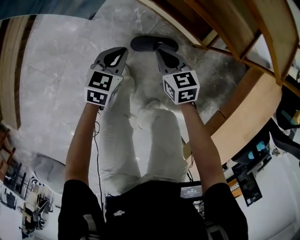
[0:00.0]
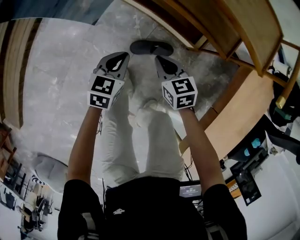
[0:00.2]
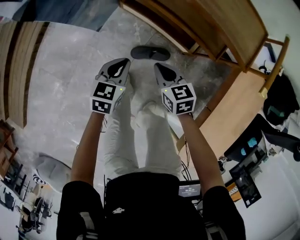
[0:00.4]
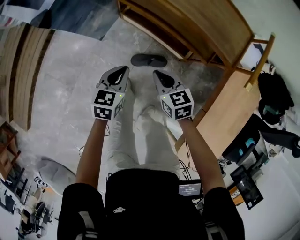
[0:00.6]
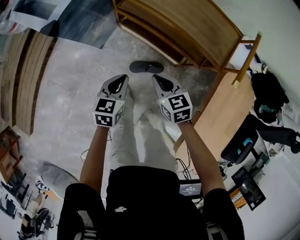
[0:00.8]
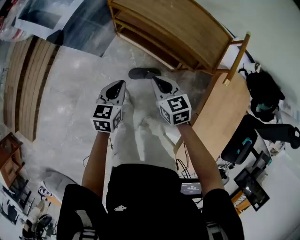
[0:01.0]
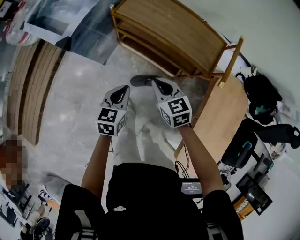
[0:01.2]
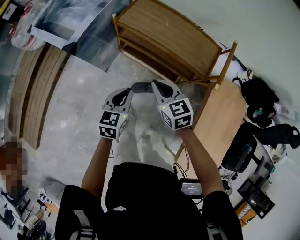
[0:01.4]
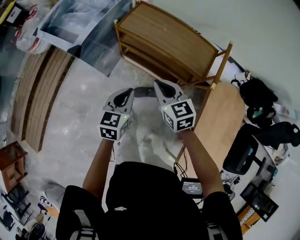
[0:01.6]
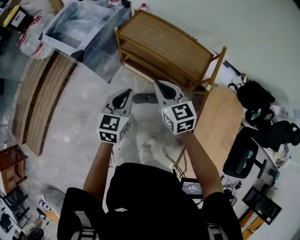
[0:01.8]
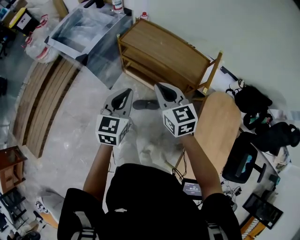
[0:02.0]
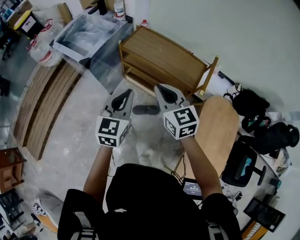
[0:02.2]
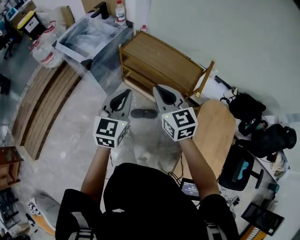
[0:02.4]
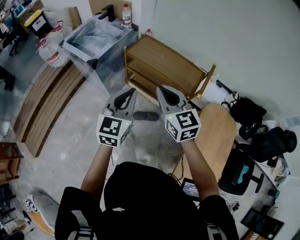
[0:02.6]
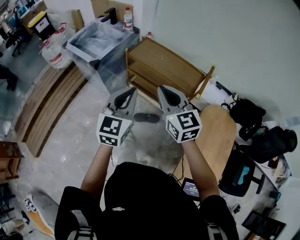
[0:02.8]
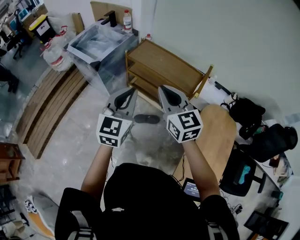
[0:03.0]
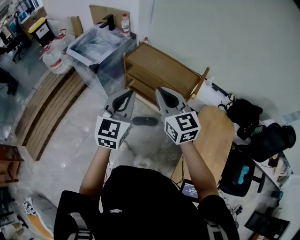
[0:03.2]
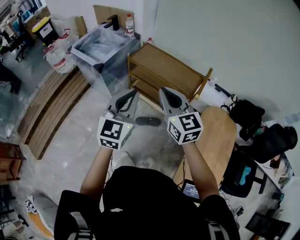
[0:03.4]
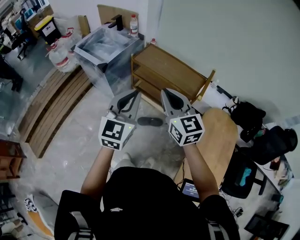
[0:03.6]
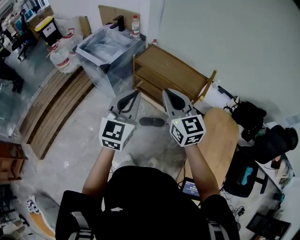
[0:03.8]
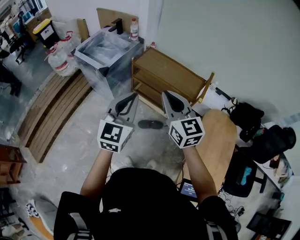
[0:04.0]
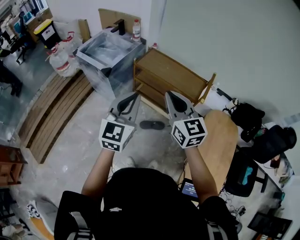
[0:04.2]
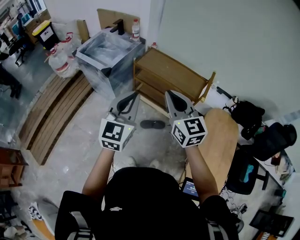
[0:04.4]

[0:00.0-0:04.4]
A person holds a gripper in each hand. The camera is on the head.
0.0 to 1.4 s: Both grippers move upward, approximately 40 cm.
1.4 to 3.0 s: The two grippers go roughly 35 cm upward and backward. The left gripper turns by about 30 degrees; the right gripper swivels approximately 30 degrees.
3.0 to 4.4 s: The two grippers go approximately 5 cm to the left.

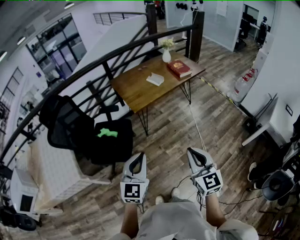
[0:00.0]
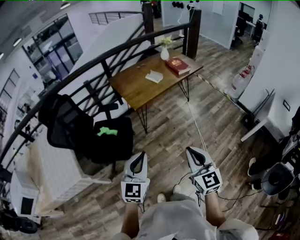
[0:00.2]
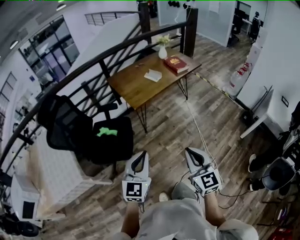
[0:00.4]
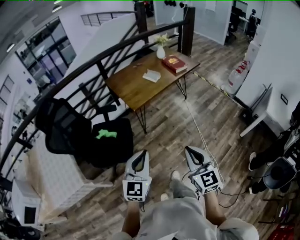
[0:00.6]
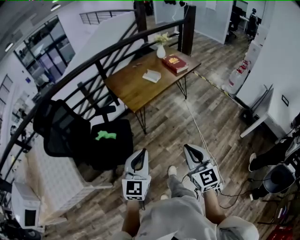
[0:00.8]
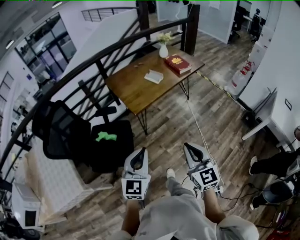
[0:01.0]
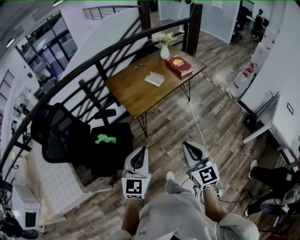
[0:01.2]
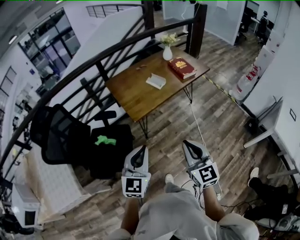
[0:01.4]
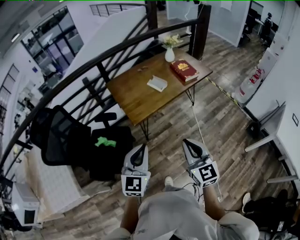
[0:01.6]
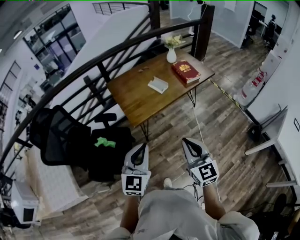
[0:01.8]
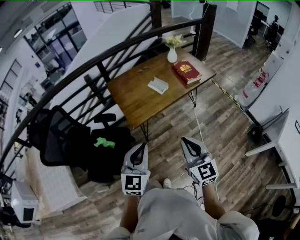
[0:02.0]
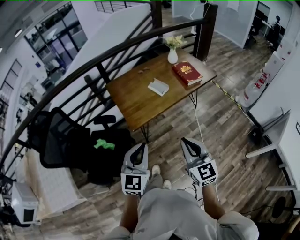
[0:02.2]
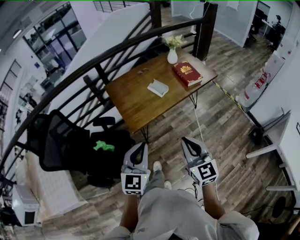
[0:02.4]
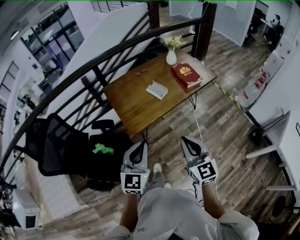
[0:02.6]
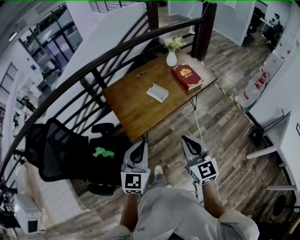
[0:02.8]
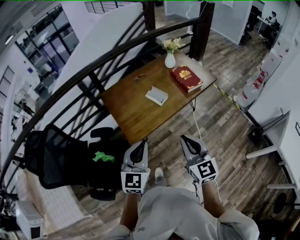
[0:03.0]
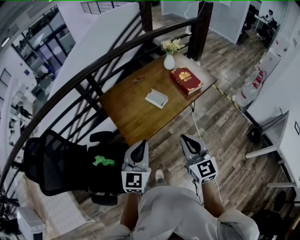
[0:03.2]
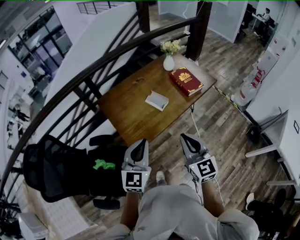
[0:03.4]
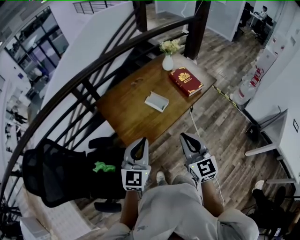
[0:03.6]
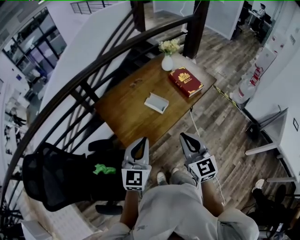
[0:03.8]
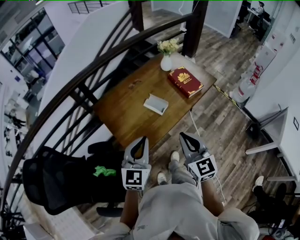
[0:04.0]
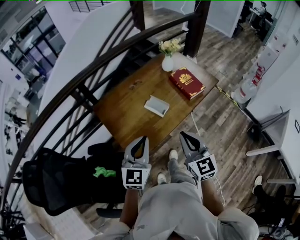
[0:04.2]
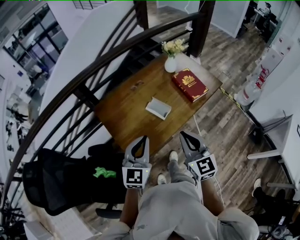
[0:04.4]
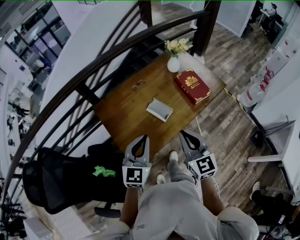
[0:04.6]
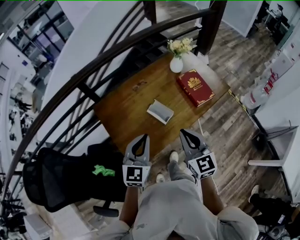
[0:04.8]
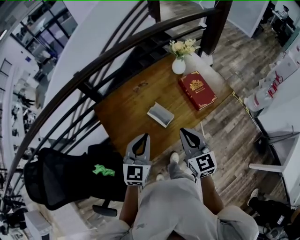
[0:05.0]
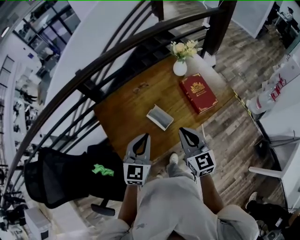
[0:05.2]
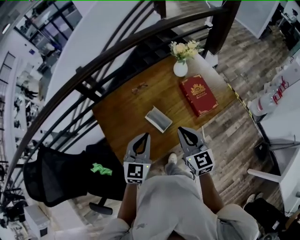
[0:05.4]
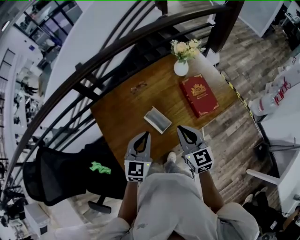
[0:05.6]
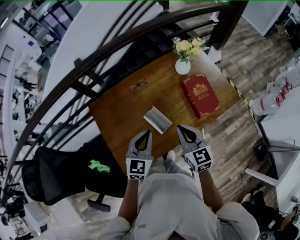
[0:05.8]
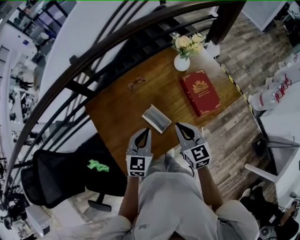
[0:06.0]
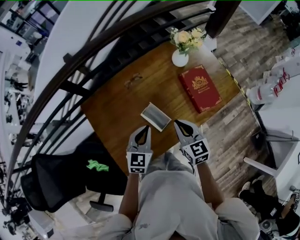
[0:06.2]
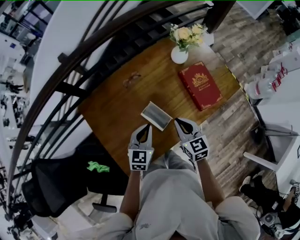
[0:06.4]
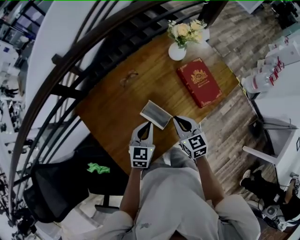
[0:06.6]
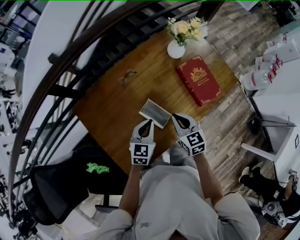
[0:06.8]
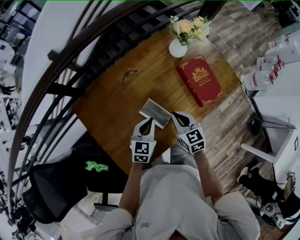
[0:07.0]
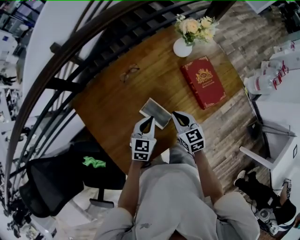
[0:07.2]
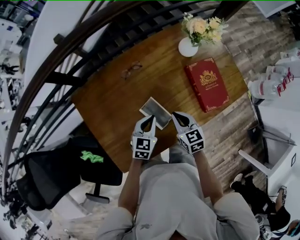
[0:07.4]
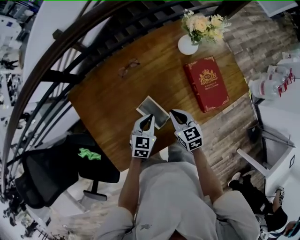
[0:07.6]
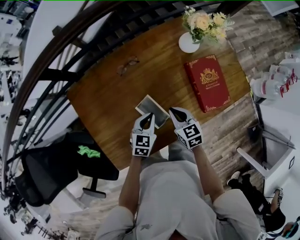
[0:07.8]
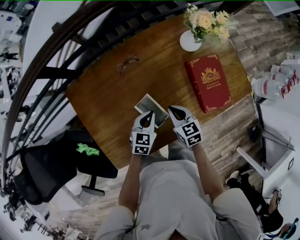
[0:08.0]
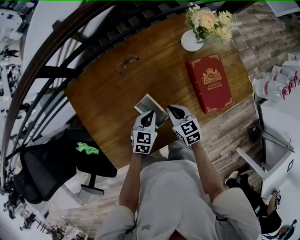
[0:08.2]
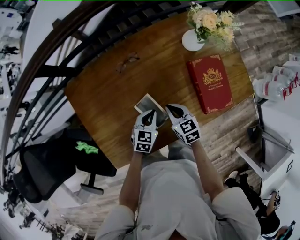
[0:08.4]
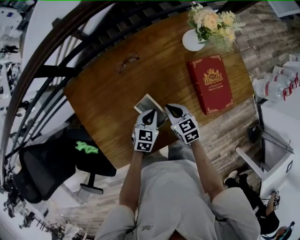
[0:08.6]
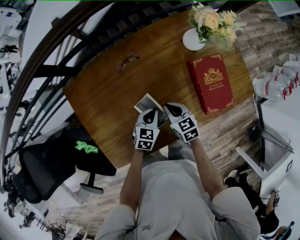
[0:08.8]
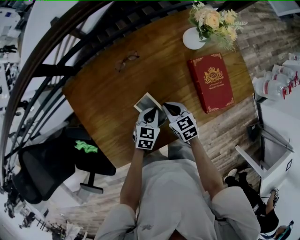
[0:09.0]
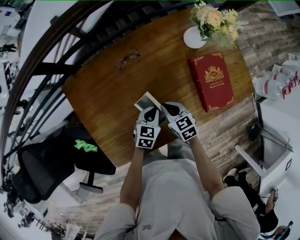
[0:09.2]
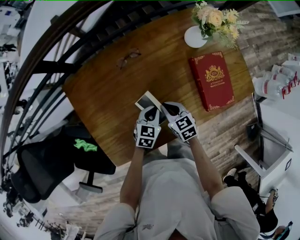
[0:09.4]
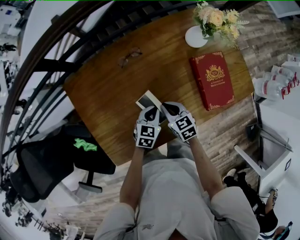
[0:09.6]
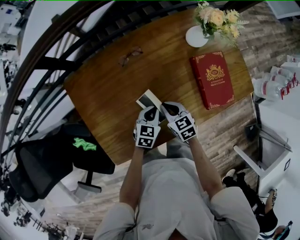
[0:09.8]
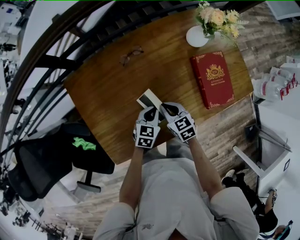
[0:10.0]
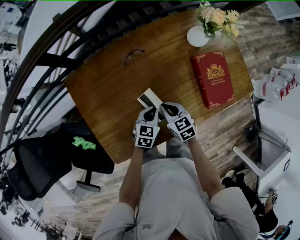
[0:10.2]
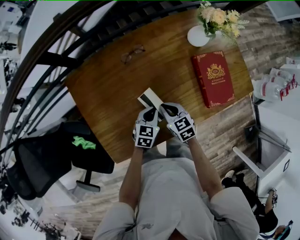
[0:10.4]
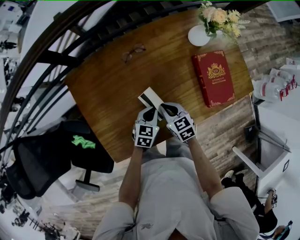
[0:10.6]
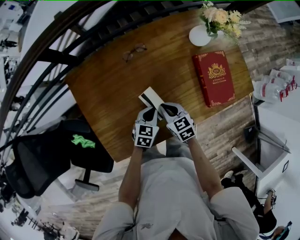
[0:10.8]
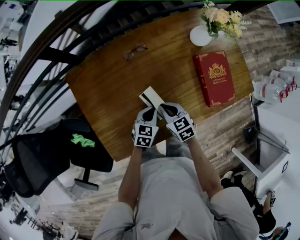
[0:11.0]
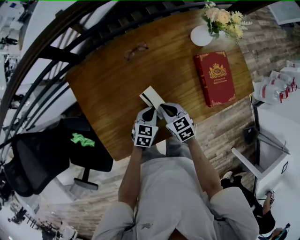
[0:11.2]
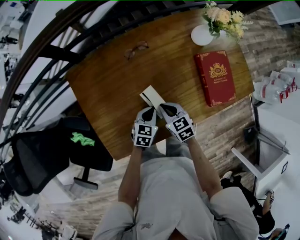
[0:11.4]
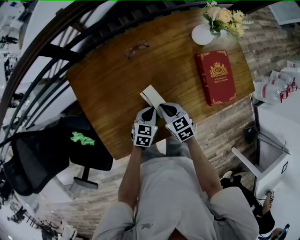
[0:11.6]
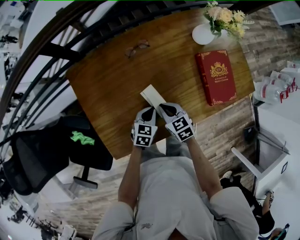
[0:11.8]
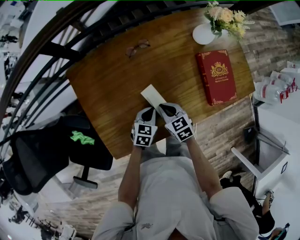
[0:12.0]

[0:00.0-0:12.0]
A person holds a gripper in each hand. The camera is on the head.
0.0 to 1.6 s: The grippers both shift forward by about 20 cm.
1.6 to 3.0 s: Both grippers move forward, approximately 20 cm.
3.0 to 4.4 s: Both grippers move forward, approximately 20 cm.
4.4 to 6.0 s: Both grippers travel together forward and downward, about 25 cm.
6.0 to 7.6 s: The right gripper shifts approximately 15 cm downward and forward. The left gripper moves downward, roughly 15 cm.
7.6 to 9.0 s: The two grippers go some 5 cm downward.
9.0 to 10.4 s: The grippers stay close to where they were, moving slightly.
10.4 to 12.0 s: The grippers stay close to where they were, moving slightly.

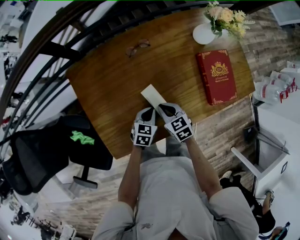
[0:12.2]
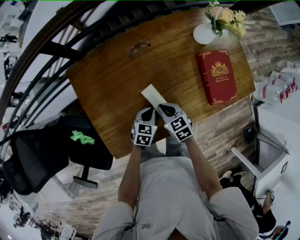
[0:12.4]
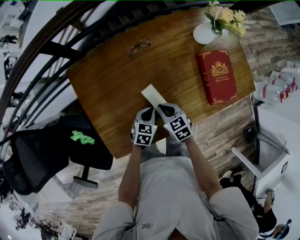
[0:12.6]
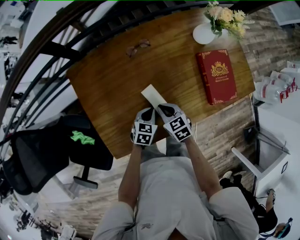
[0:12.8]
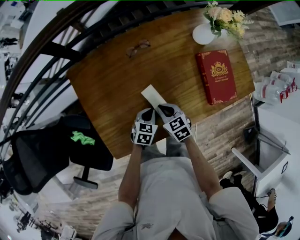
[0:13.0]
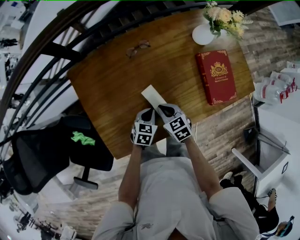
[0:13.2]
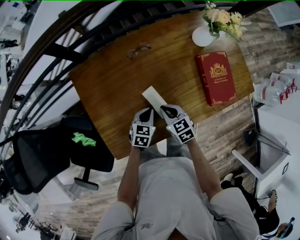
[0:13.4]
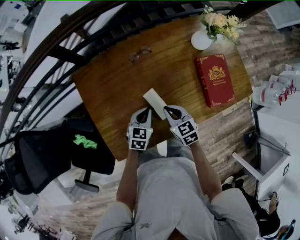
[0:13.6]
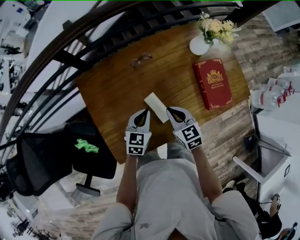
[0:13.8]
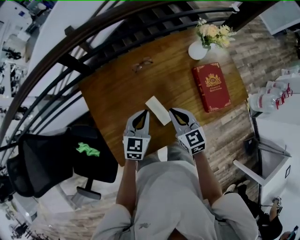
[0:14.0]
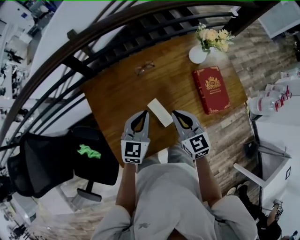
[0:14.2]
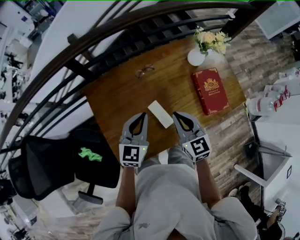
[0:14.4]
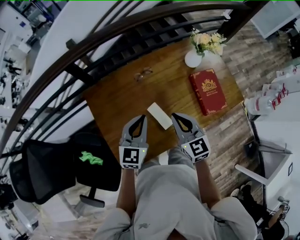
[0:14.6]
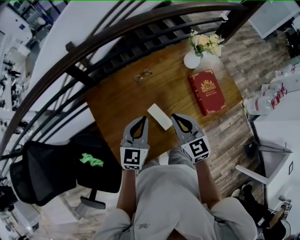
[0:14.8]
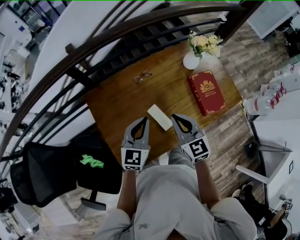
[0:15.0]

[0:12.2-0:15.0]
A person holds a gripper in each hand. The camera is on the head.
12.2 to 13.6 s: The left gripper is displaced upward by some 5 cm.
13.6 to 15.0 s: The two grippers go some 20 cm upward. The left gripper rotates approximately 30 degrees. Meanwhile the right gripper swivels about 30 degrees.

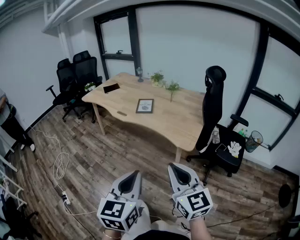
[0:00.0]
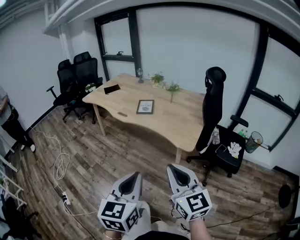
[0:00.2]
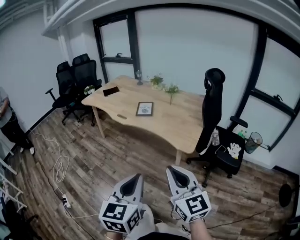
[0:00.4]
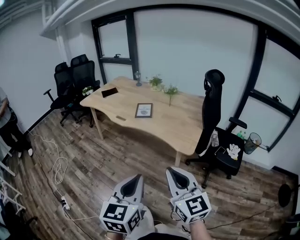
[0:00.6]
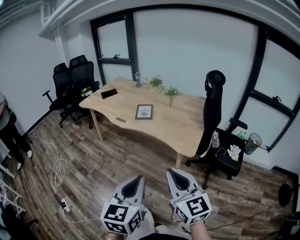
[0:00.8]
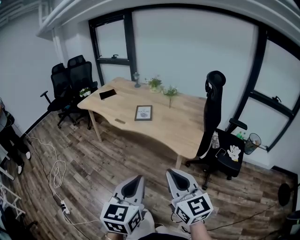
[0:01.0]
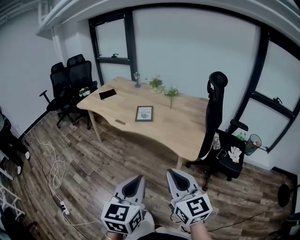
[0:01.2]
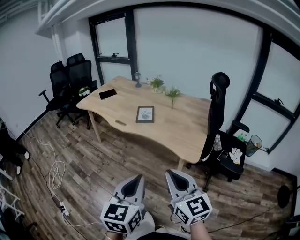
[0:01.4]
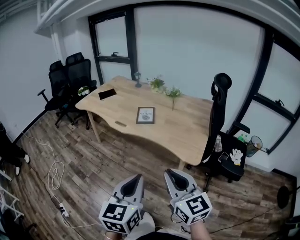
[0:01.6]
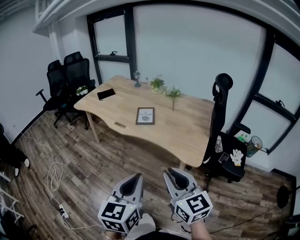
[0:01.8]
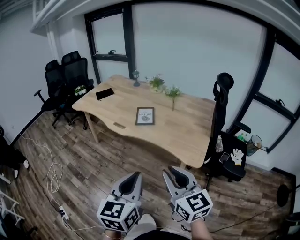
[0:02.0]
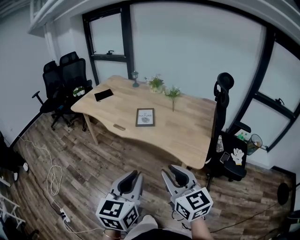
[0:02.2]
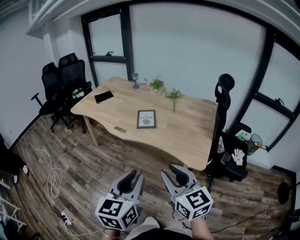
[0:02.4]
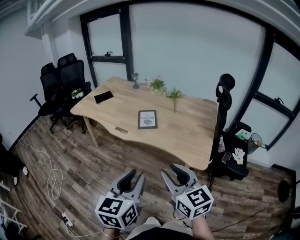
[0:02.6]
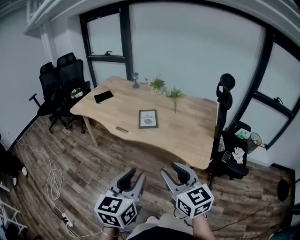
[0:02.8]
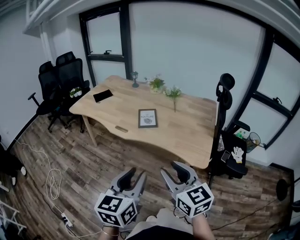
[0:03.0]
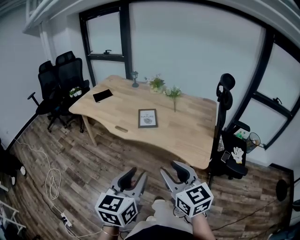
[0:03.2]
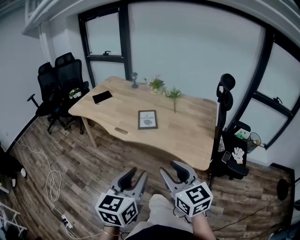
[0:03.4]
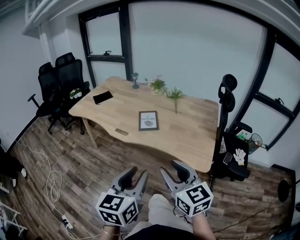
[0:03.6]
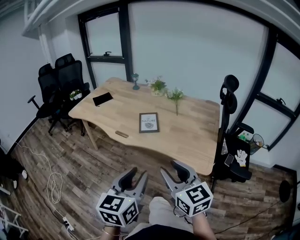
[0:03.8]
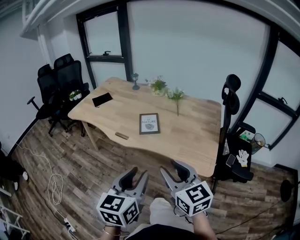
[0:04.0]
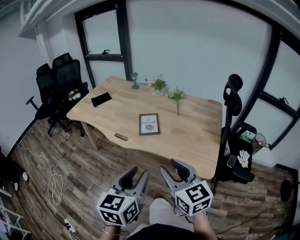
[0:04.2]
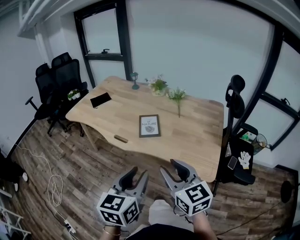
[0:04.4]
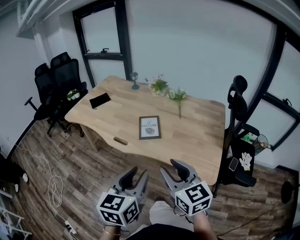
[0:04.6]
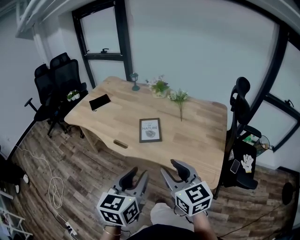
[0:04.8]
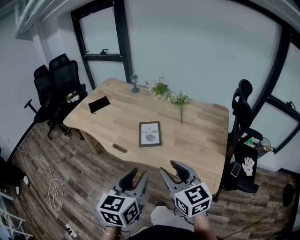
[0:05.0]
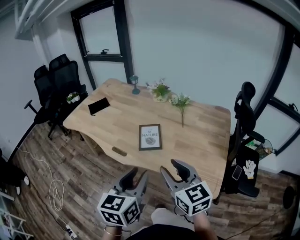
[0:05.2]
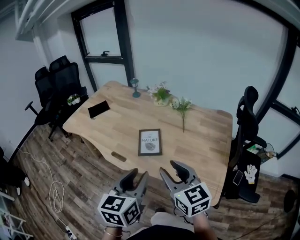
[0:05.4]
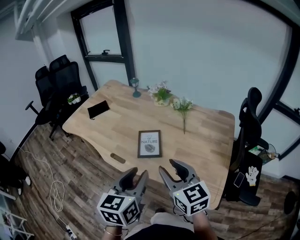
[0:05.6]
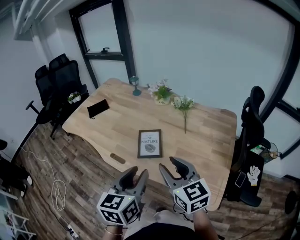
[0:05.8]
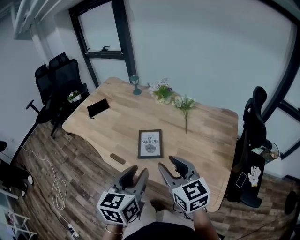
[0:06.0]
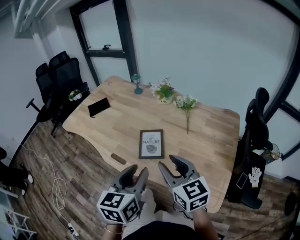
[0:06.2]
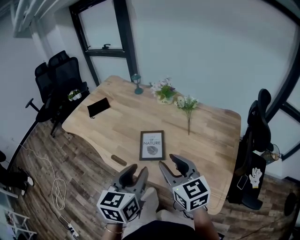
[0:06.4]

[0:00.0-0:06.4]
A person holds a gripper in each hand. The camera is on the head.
0.0 to 1.6 s: The right gripper travels forward and to the left by roughly 10 cm. The left gripper shifts roughly 10 cm forward.
1.6 to 3.2 s: The two grippers go some 10 cm forward and to the left. The left gripper opens. Meanwhile the right gripper opens up.
3.2 to 4.8 s: The grippers both shift forward by some 15 cm.
4.8 to 6.4 s: The grippers both shift forward by about 20 cm.
